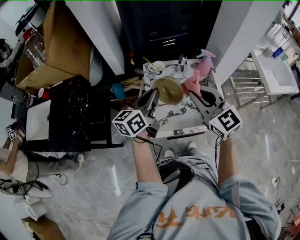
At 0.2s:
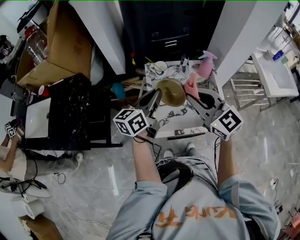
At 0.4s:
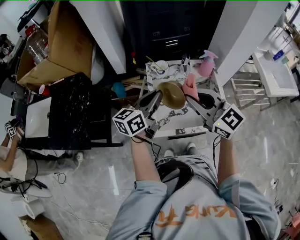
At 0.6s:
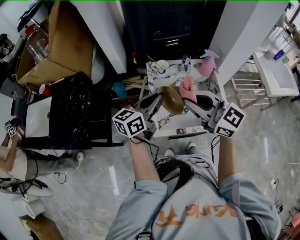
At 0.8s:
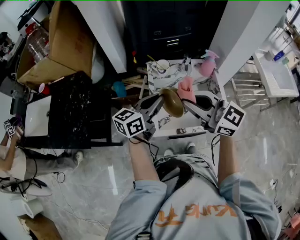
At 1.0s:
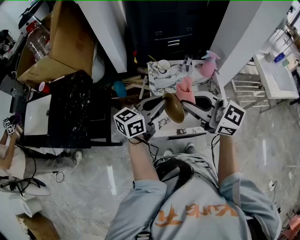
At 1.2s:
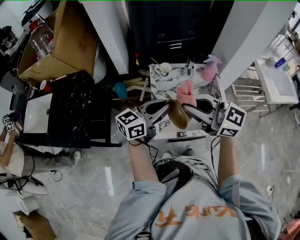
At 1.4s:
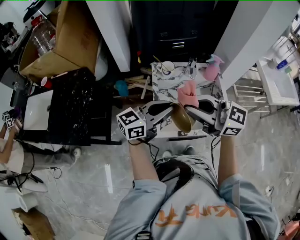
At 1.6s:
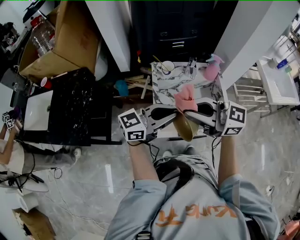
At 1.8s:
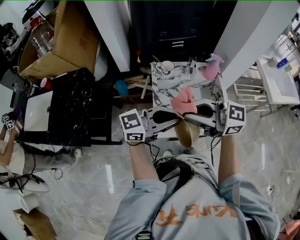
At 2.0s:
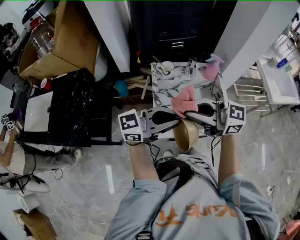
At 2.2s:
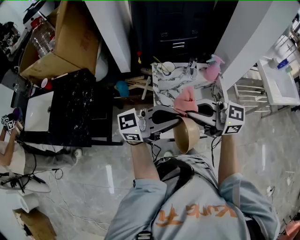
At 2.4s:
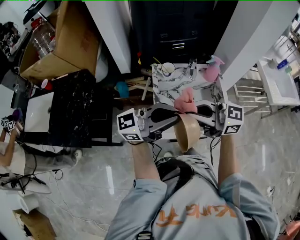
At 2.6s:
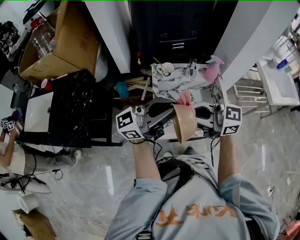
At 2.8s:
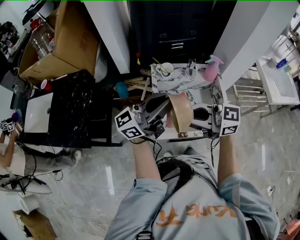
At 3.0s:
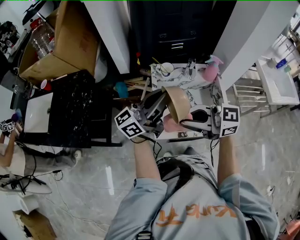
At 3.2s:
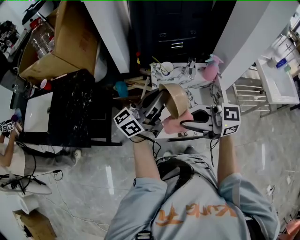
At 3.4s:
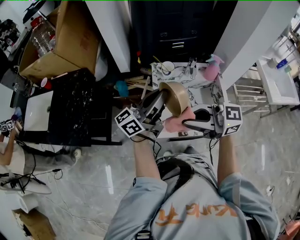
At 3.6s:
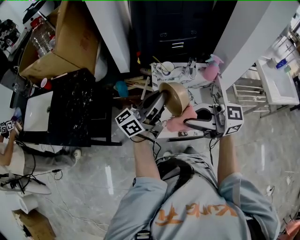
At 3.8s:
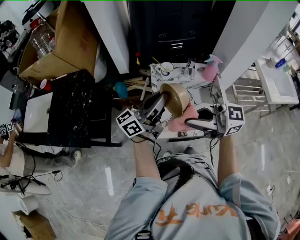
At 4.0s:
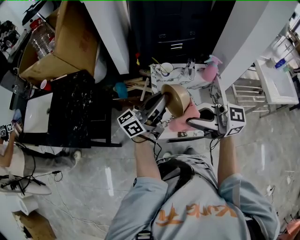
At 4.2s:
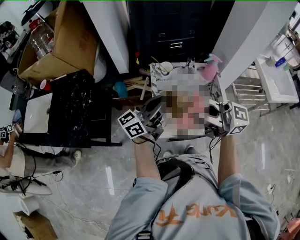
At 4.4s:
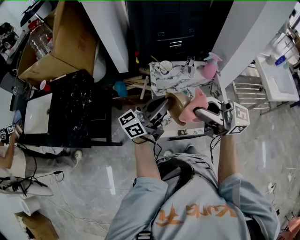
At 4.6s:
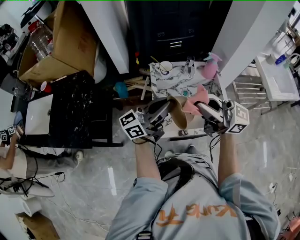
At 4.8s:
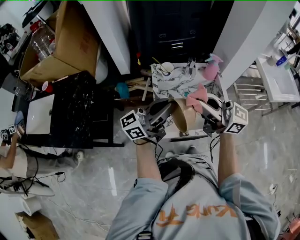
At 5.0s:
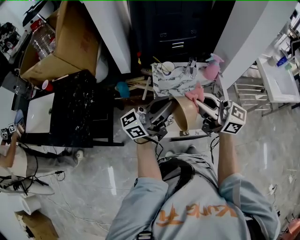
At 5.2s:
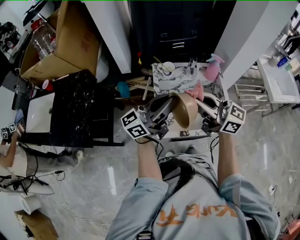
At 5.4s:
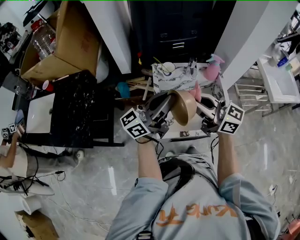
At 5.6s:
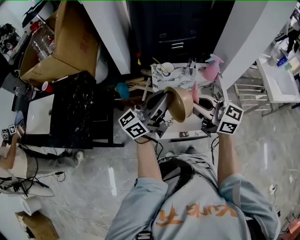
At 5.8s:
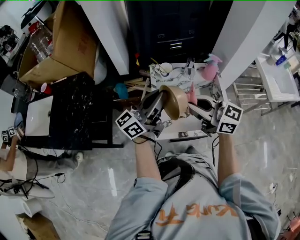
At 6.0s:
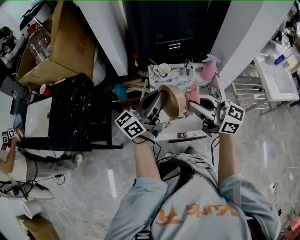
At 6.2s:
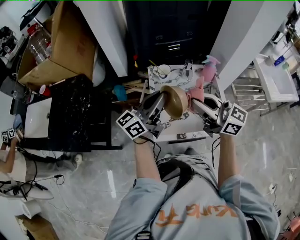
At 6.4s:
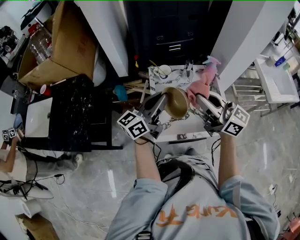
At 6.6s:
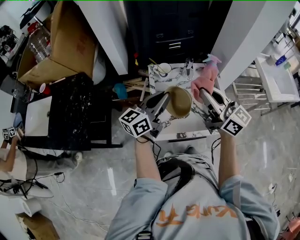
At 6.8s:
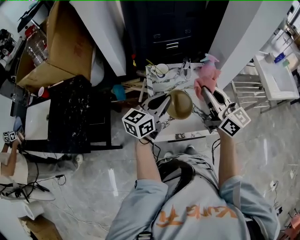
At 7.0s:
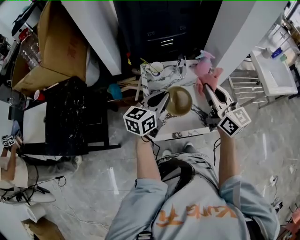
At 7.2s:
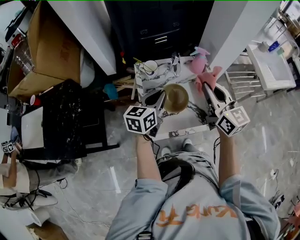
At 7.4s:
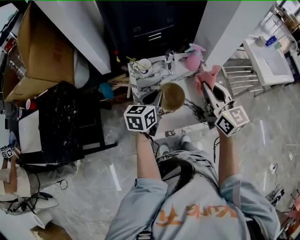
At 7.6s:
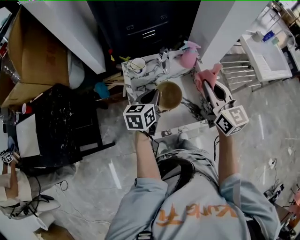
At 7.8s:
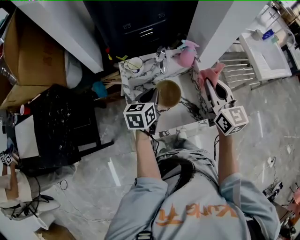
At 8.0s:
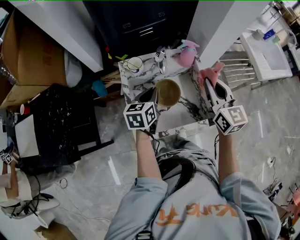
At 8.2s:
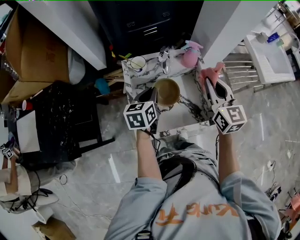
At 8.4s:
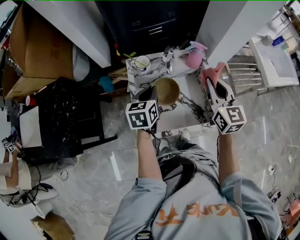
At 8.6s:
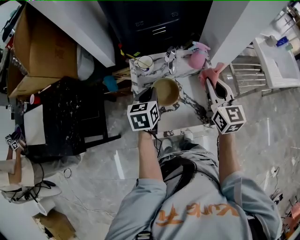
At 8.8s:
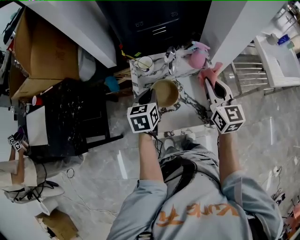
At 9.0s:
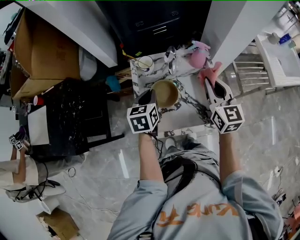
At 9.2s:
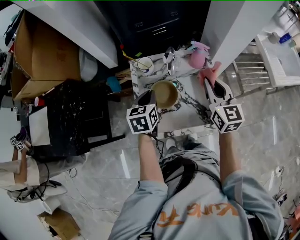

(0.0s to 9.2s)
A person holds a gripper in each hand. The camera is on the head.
0.0s - 1.6s: The left gripper changes place by about 10 cm, and swivels roughly 40 degrees, while the right gripper shifts by about 10 cm, and swivels approximately 50 degrees.
1.6s - 3.0s: The left gripper changes place by approximately 10 cm, and turns by about 30 degrees.
3.0s - 4.6s: The left gripper shifts by approximately 5 cm. The right gripper moves about 10 cm, and changes its angle by some 30 degrees.
6.2s - 7.6s: The left gripper goes approximately 15 cm downward, to the right and forward, and points its fingers approximately 50 degrees further downward; the right gripper heads to the right and forward, covering some 15 cm, and rotates about 50 degrees.
7.6s - 9.2s: The left gripper swivels about 20 degrees. The right gripper shifts by approximately 5 cm.

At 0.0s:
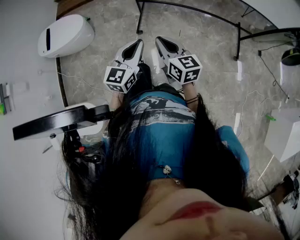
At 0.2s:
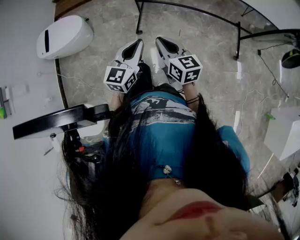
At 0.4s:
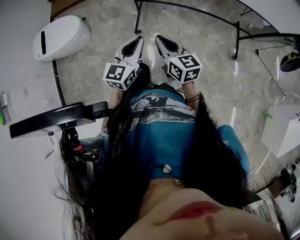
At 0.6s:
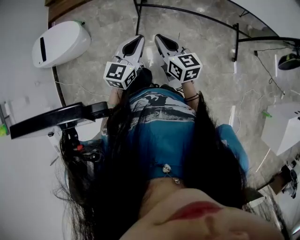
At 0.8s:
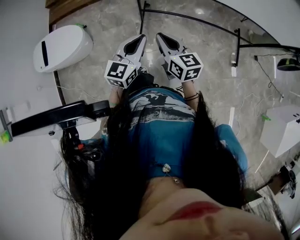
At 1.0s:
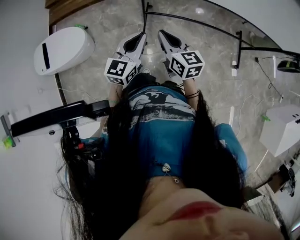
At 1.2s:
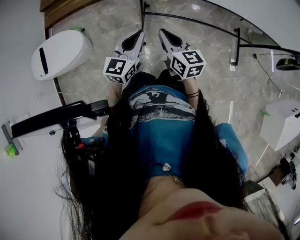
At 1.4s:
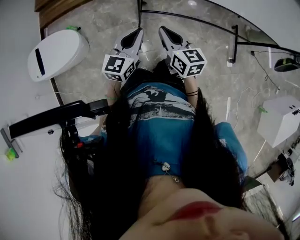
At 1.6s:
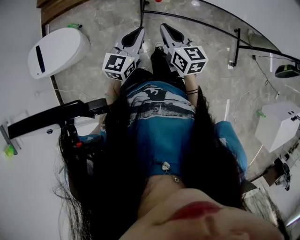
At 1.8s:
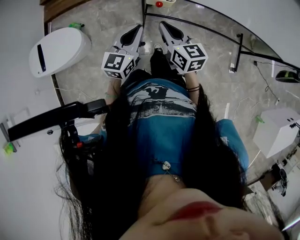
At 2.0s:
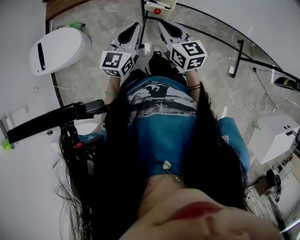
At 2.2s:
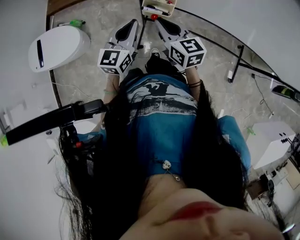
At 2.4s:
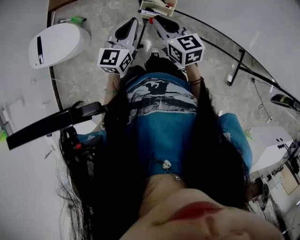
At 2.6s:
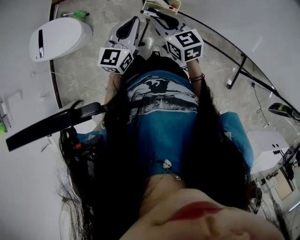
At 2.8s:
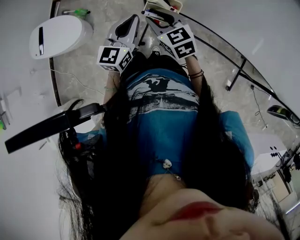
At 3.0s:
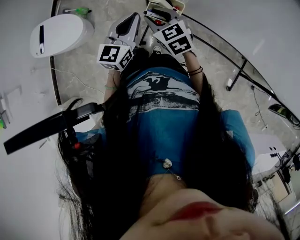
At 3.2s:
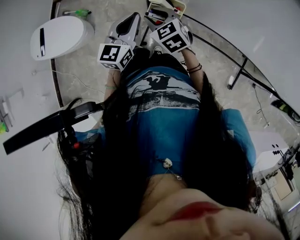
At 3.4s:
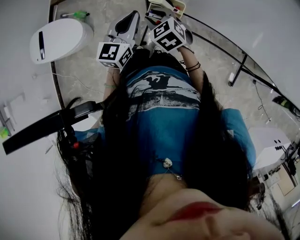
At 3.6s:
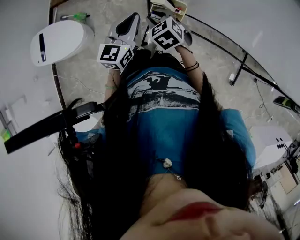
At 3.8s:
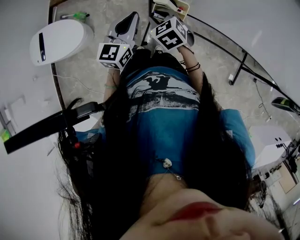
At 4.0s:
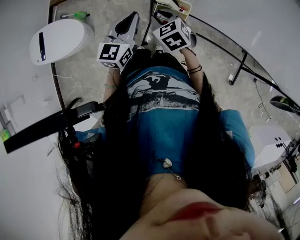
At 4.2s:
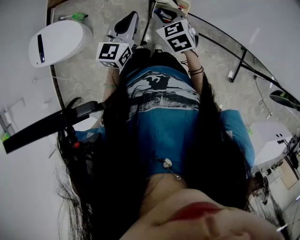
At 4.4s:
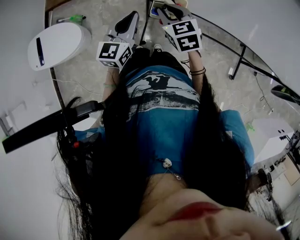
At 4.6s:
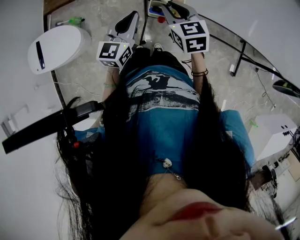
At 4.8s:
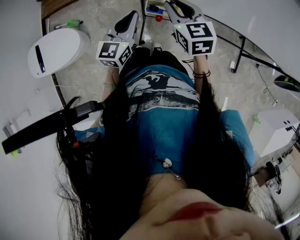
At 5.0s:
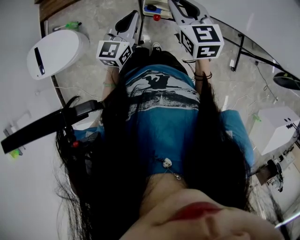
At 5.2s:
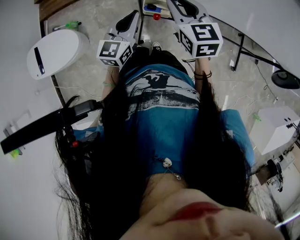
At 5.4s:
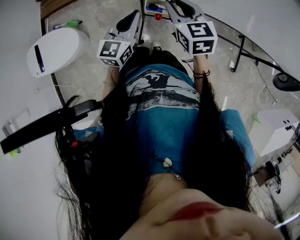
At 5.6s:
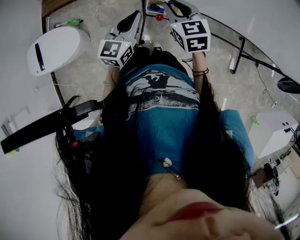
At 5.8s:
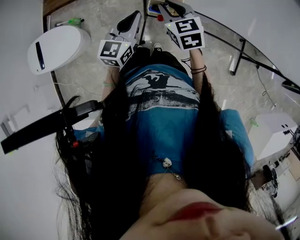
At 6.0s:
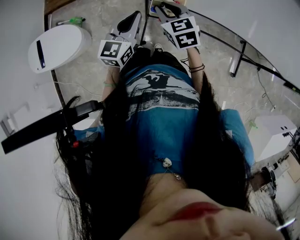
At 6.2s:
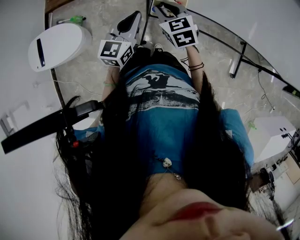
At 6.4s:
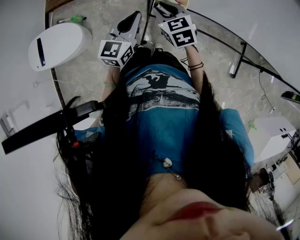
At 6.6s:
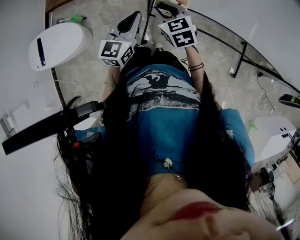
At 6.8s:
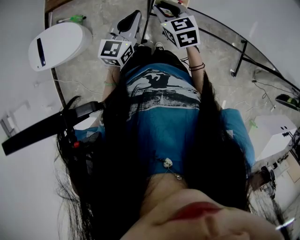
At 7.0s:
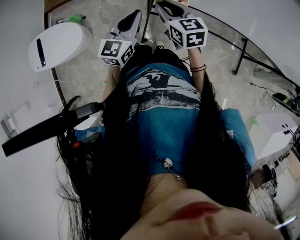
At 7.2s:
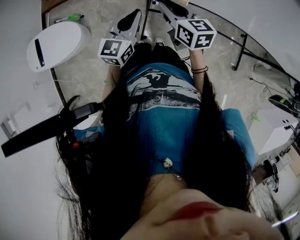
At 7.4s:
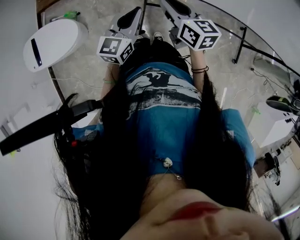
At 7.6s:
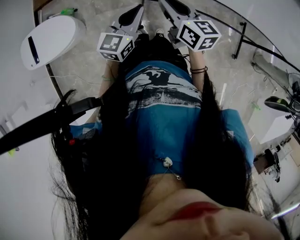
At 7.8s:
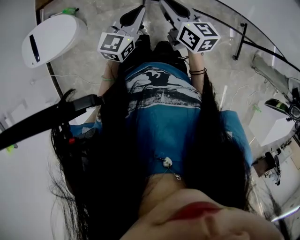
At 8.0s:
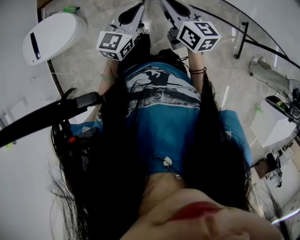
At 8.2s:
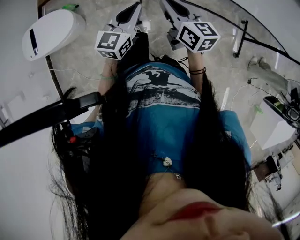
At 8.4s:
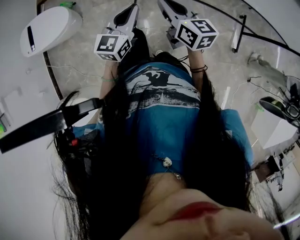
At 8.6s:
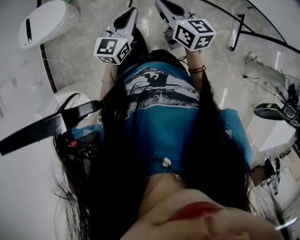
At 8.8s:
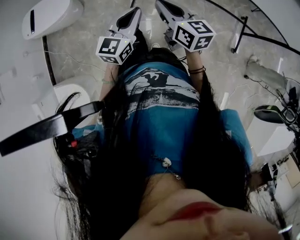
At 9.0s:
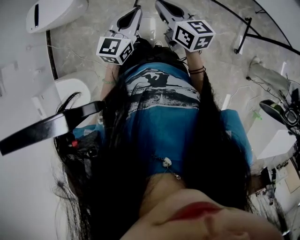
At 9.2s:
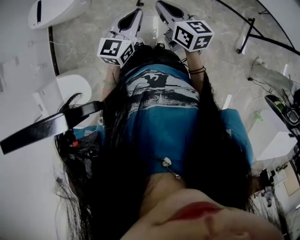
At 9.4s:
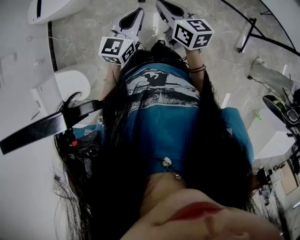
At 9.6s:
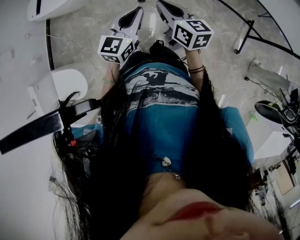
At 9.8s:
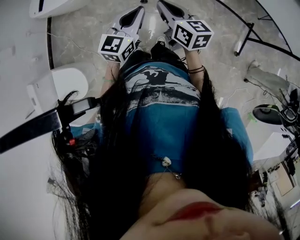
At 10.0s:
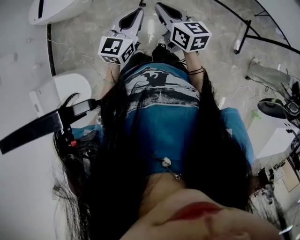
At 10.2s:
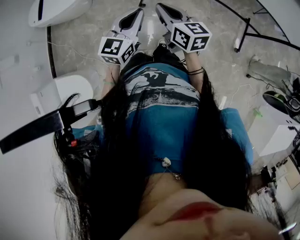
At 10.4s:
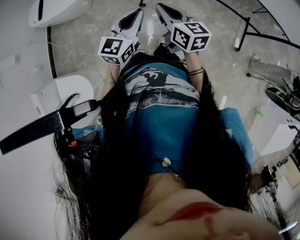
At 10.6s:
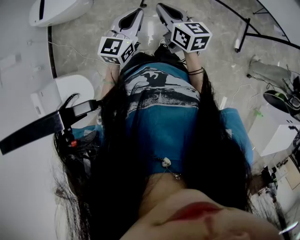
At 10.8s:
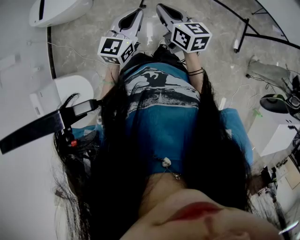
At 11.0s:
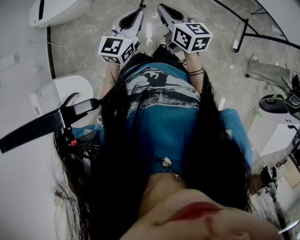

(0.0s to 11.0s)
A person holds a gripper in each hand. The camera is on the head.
0.0s - 1.6s: The left gripper travels forward and to the left by approximately 40 cm; the right gripper shifts about 35 cm forward.
1.6s - 3.2s: The grippers both shift forward by some 20 cm. The right gripper turns by approximately 50 degrees, and opens its fingers.
3.2s - 4.8s: The right gripper is displaced to the right and upward by approximately 15 cm, and rotates roughly 30 degrees; the left gripper goes some 5 cm to the right.
4.8s - 6.2s: The right gripper goes some 5 cm downward.
6.2s - 7.8s: The grippers both shift backward by approximately 10 cm. The right gripper rotates about 40 degrees.
7.8s - 9.4s: Both grippers move backward, about 35 cm.
9.4s - 11.0s: The two grippers go some 10 cm to the left and backward.

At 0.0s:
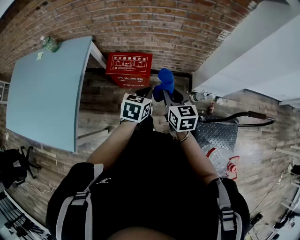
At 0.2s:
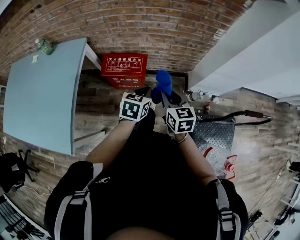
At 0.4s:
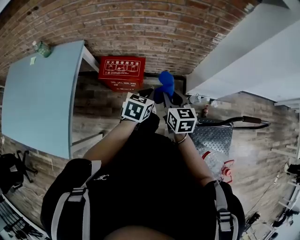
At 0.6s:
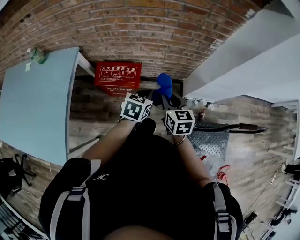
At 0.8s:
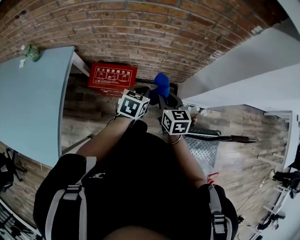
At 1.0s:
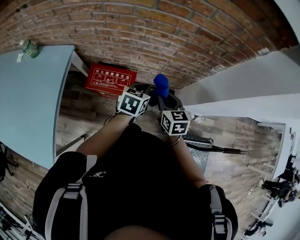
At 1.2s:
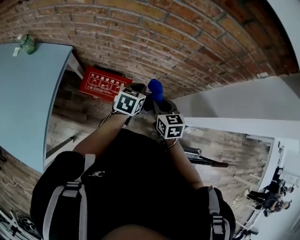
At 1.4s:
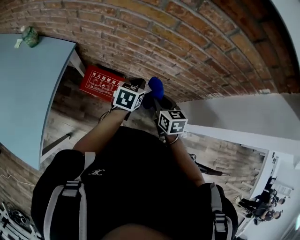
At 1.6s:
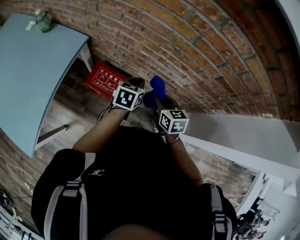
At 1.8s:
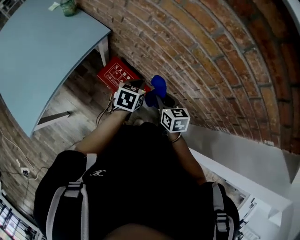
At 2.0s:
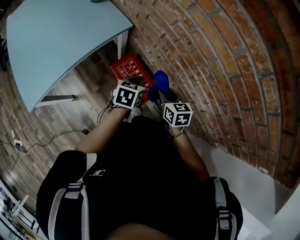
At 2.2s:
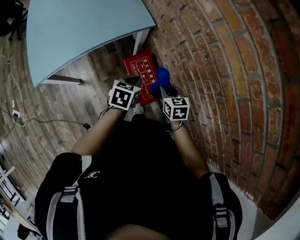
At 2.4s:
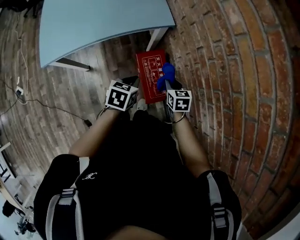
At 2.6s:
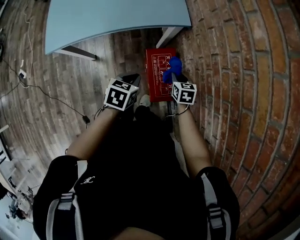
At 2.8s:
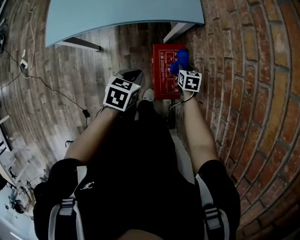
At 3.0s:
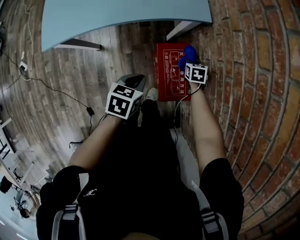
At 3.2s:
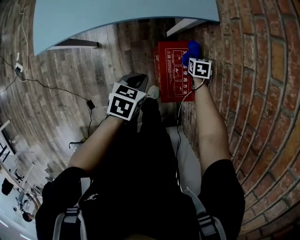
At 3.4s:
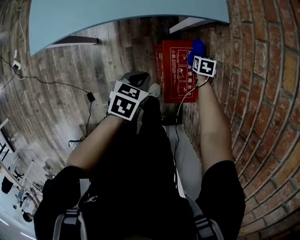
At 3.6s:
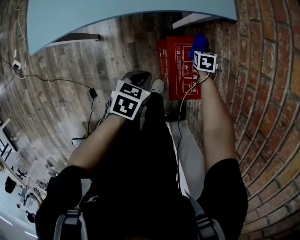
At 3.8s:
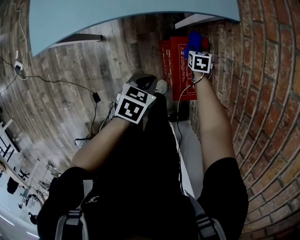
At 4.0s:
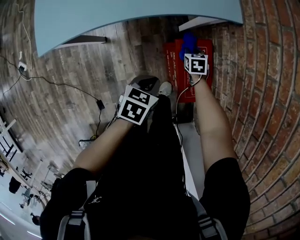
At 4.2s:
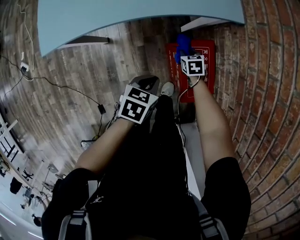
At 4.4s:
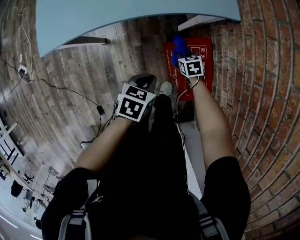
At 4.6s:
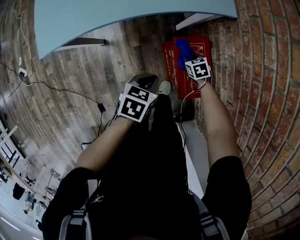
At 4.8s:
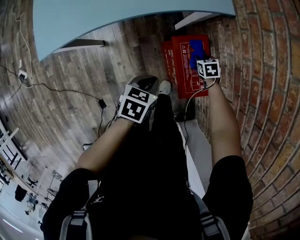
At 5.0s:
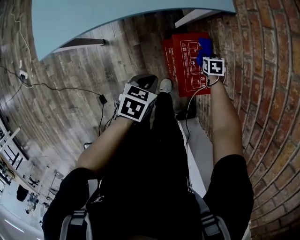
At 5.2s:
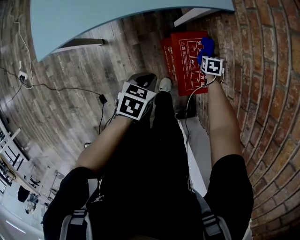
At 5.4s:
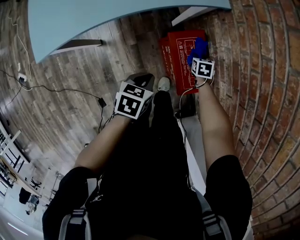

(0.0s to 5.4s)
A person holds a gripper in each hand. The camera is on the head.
0.0s - 1.4s: The two grippers go some 30 cm forward.
1.4s - 2.8s: The left gripper shifts by approximately 30 cm, and rotates some 60 degrees. The right gripper moves approximately 40 cm, and rotates roughly 60 degrees.
2.8s - 4.0s: The right gripper goes about 15 cm to the left and downward; the left gripper is displaced downward and to the left by roughly 10 cm.
4.0s - 5.4s: The right gripper shifts by approximately 10 cm.
